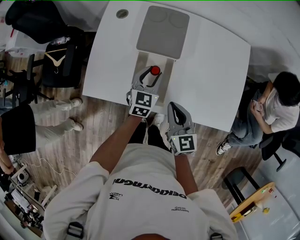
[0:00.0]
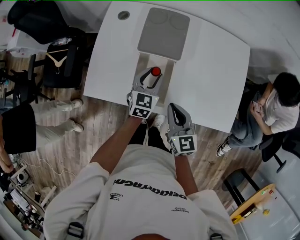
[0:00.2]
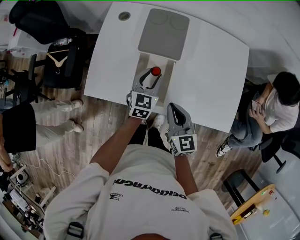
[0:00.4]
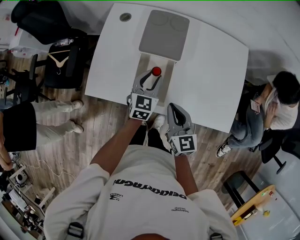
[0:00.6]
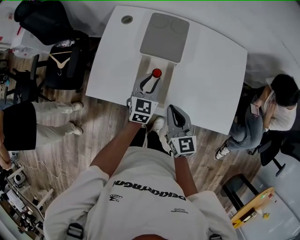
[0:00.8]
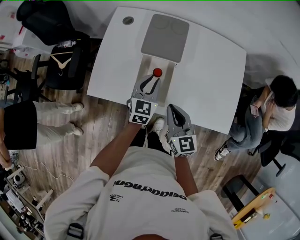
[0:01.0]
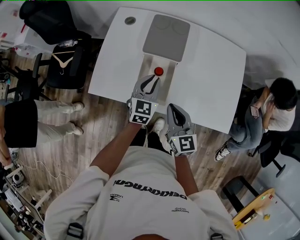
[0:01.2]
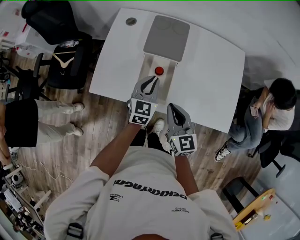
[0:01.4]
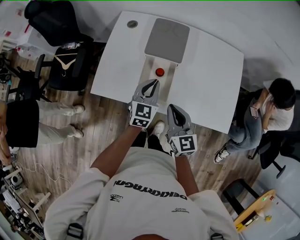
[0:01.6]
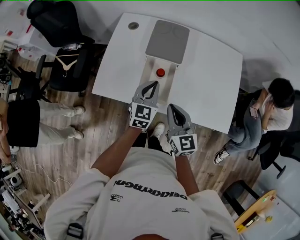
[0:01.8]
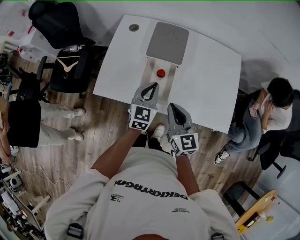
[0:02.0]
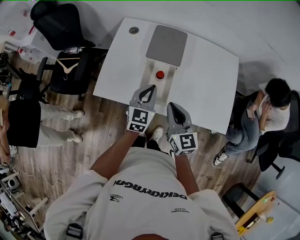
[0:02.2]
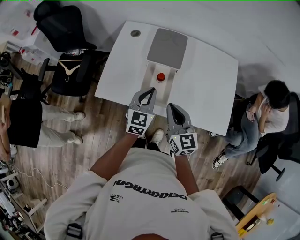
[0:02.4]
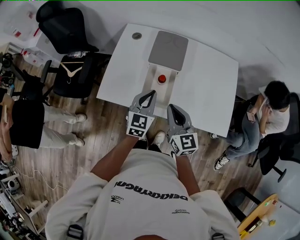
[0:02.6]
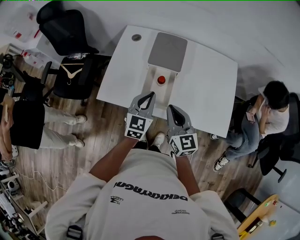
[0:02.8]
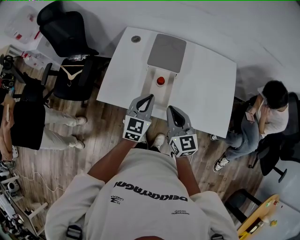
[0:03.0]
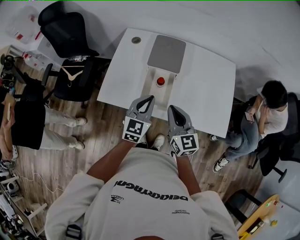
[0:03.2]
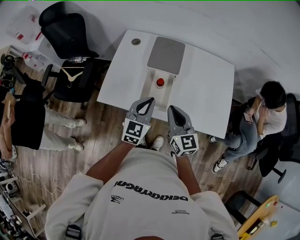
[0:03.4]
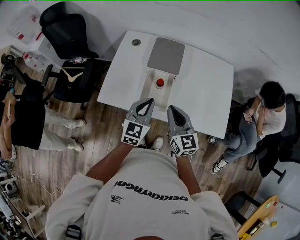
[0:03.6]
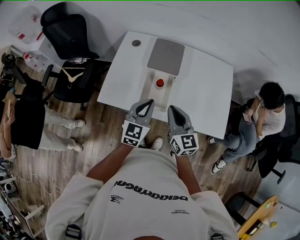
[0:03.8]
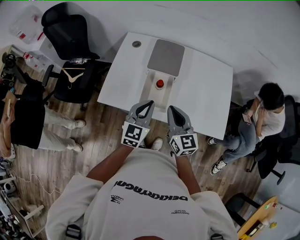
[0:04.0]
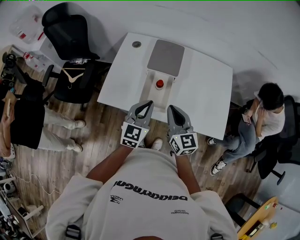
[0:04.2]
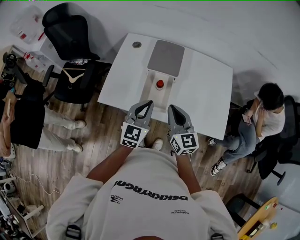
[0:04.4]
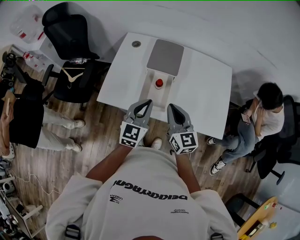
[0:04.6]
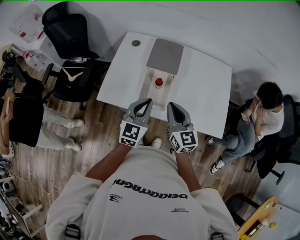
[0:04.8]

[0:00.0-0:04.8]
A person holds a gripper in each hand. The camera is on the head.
0:00.0 to 0:01.6: The left gripper shifts roughly 10 cm upward and backward, and closes, while the right gripper moves approximately 5 cm.
0:01.6 to 0:03.2: The left gripper is displaced upward and backward by about 10 cm, while the right gripper goes approximately 5 cm upward.
0:03.2 to 0:04.8: The grippers move only a little.

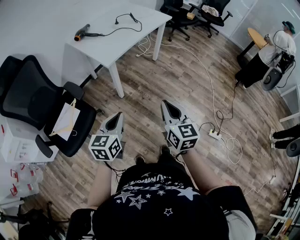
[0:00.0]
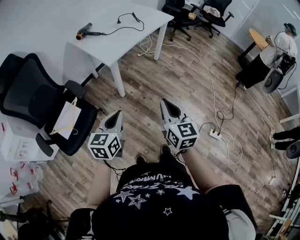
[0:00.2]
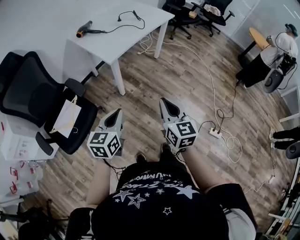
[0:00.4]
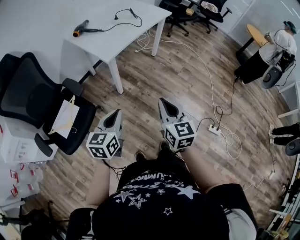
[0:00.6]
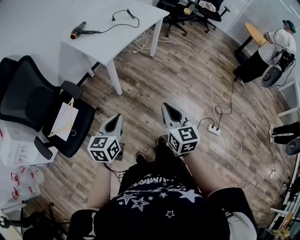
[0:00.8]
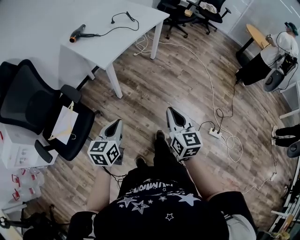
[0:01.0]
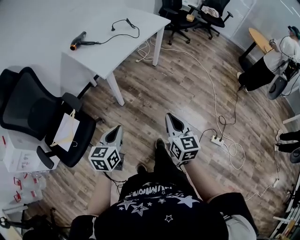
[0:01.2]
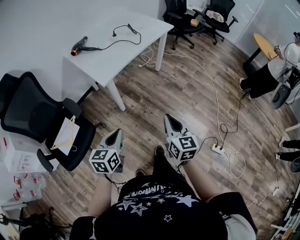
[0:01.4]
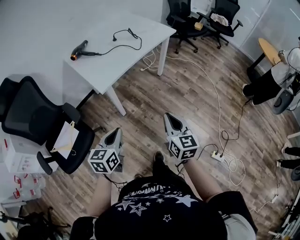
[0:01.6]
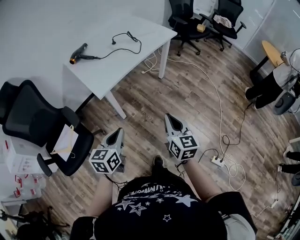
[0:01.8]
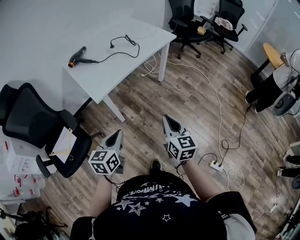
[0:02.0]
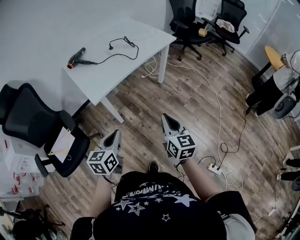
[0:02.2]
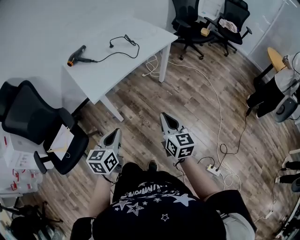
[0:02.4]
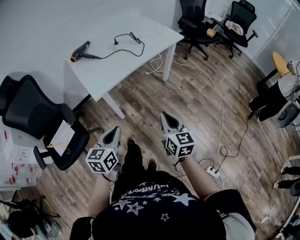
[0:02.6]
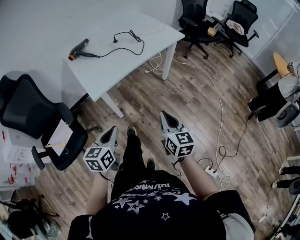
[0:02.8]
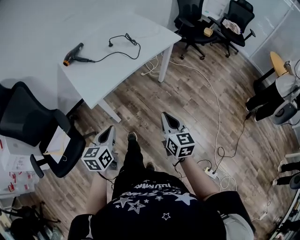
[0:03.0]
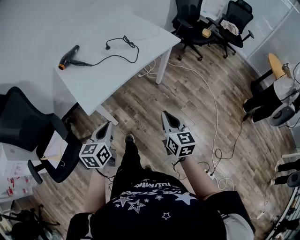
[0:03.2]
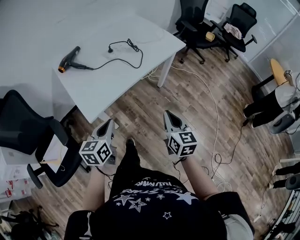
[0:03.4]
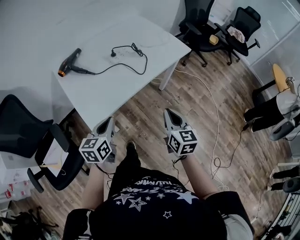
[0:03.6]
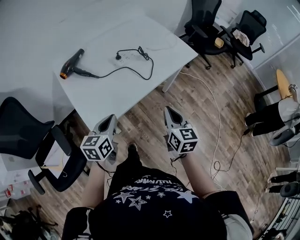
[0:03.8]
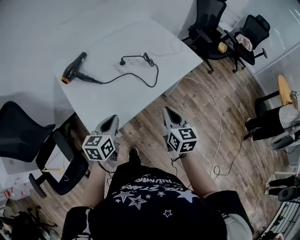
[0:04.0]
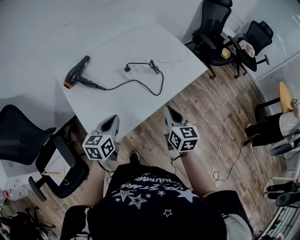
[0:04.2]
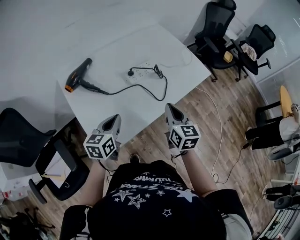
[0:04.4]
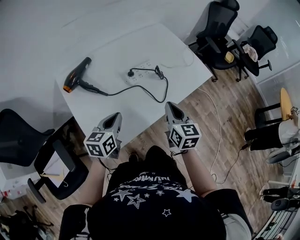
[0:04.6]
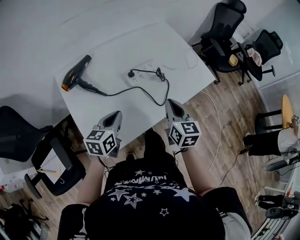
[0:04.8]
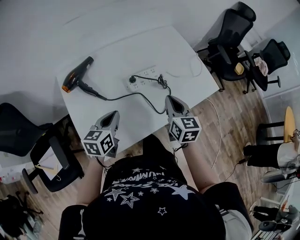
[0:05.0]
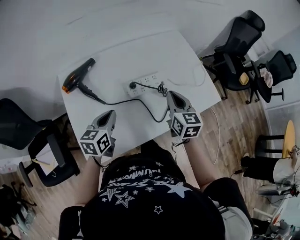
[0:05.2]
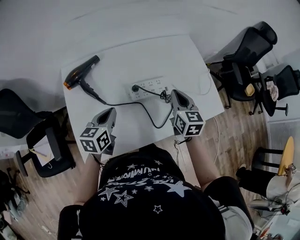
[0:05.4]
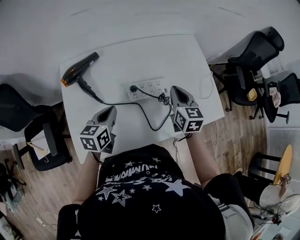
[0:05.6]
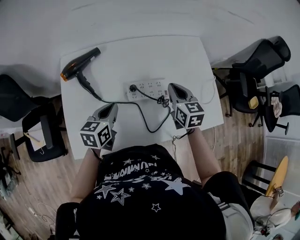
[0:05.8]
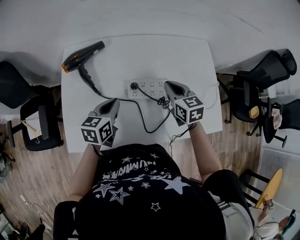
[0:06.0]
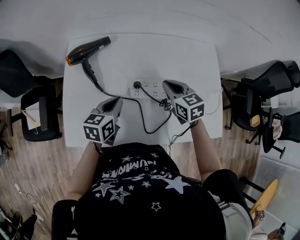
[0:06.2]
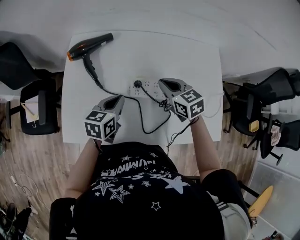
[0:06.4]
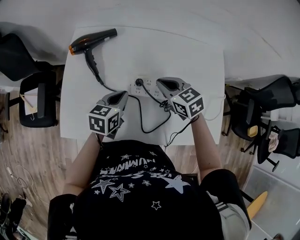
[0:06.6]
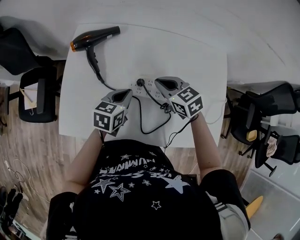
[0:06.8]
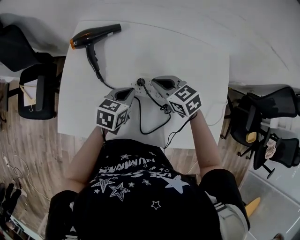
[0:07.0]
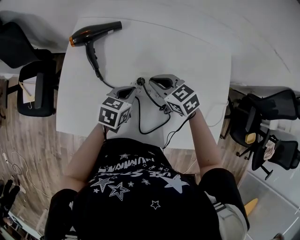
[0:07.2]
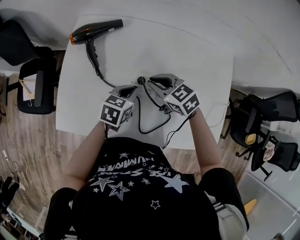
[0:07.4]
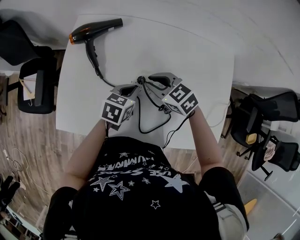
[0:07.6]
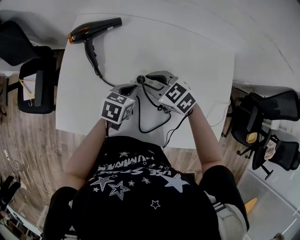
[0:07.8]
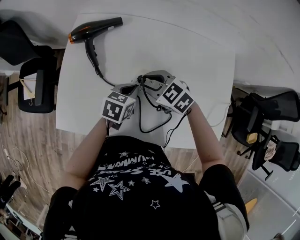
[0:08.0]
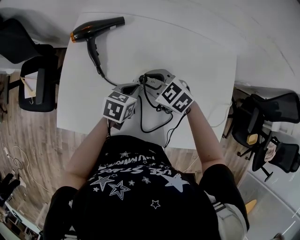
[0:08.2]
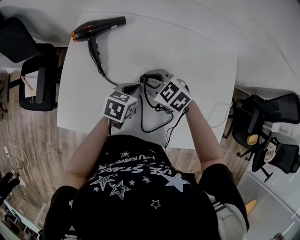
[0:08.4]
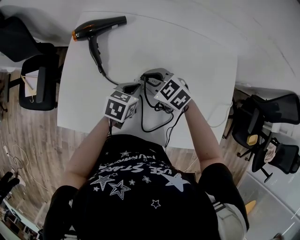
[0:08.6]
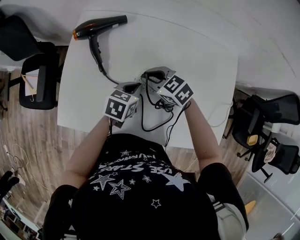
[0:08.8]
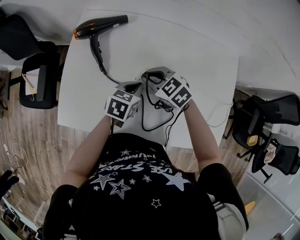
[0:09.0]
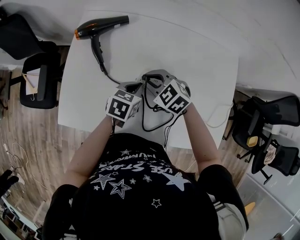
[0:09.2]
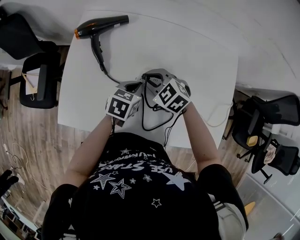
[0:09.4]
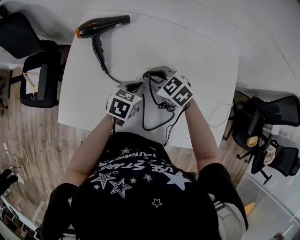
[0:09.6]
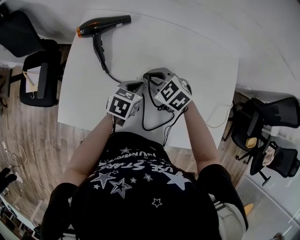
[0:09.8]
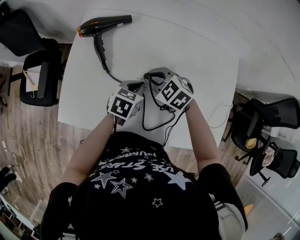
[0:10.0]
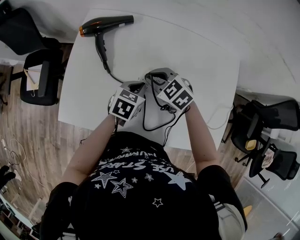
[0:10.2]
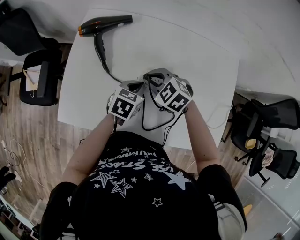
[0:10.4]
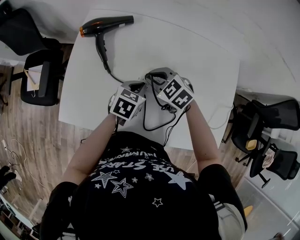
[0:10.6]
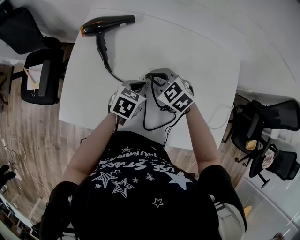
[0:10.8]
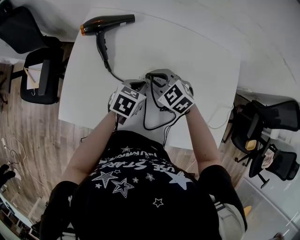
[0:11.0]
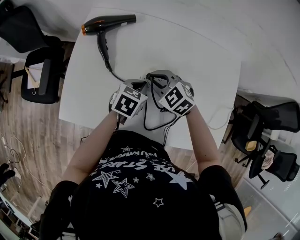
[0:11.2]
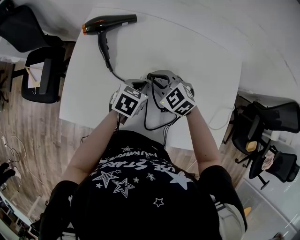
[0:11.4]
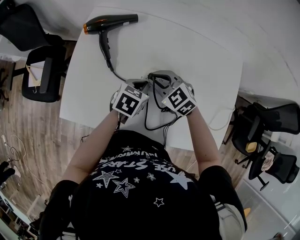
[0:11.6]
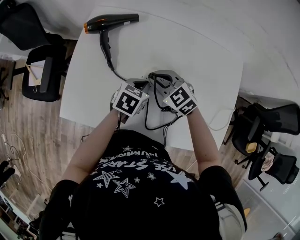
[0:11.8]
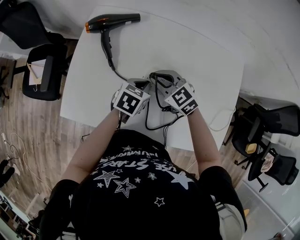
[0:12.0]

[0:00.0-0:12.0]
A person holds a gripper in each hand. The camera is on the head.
0:00.0 to 0:01.6: The right gripper travels forward and to the right by about 15 cm. Meanwhile the left gripper shifts about 15 cm forward.
0:01.6 to 0:03.0: The grippers both shift forward by approximately 15 cm.
0:03.0 to 0:04.4: Both grippers move forward, roughly 35 cm.
0:04.4 to 0:06.0: The left gripper changes place by about 20 cm, and swivels roughly 30 degrees, while the right gripper shifts by roughly 30 cm, and swivels some 50 degrees.
0:06.0 to 0:07.6: The left gripper is displaced downward and to the right by some 10 cm, while the right gripper travels to the left and downward by approximately 10 cm, and changes its angle by about 50 degrees.
0:07.6 to 0:09.0: There are only small adjustments of the grippers.
0:09.0 to 0:12.0: There are only small adjustments of the grippers.

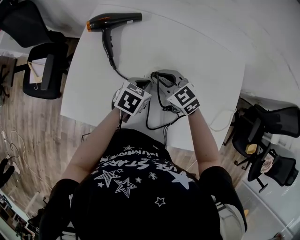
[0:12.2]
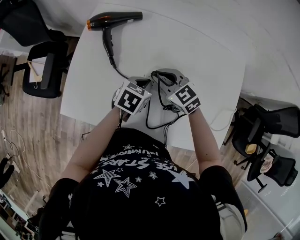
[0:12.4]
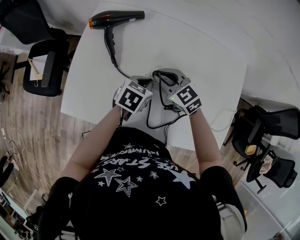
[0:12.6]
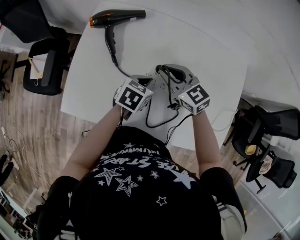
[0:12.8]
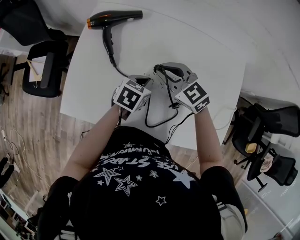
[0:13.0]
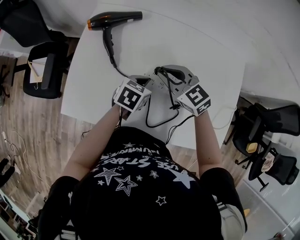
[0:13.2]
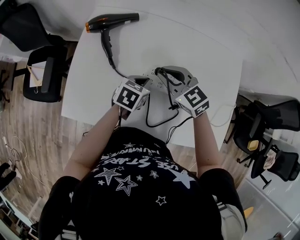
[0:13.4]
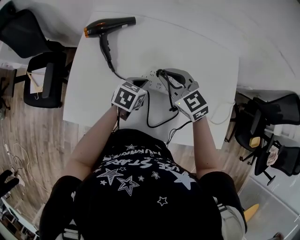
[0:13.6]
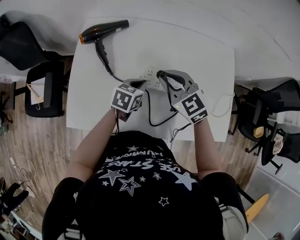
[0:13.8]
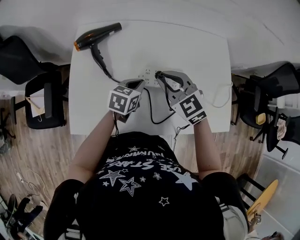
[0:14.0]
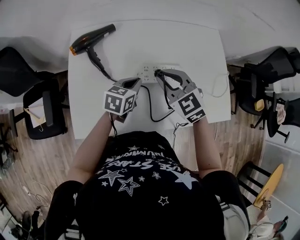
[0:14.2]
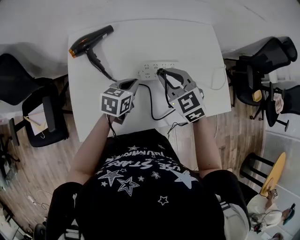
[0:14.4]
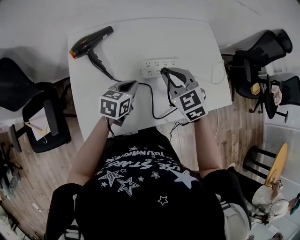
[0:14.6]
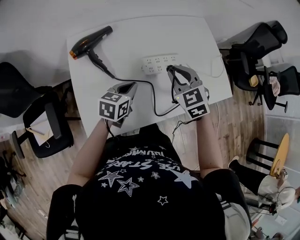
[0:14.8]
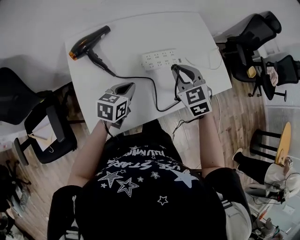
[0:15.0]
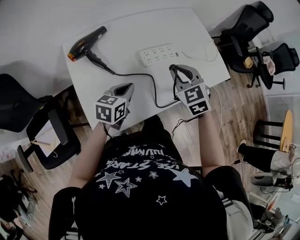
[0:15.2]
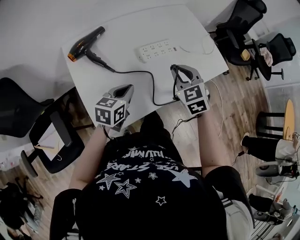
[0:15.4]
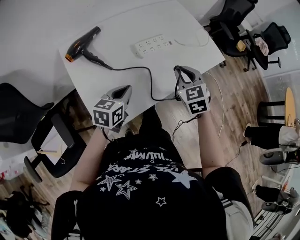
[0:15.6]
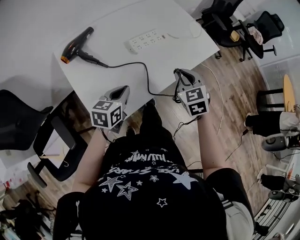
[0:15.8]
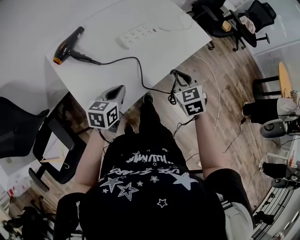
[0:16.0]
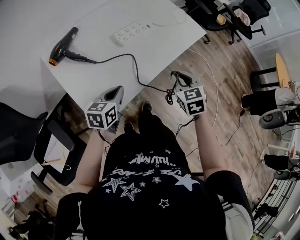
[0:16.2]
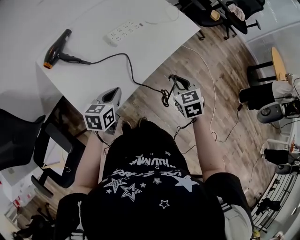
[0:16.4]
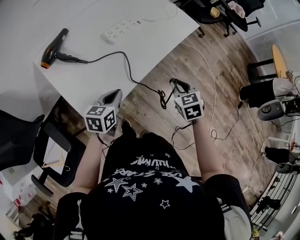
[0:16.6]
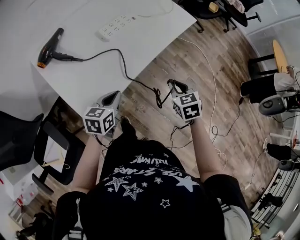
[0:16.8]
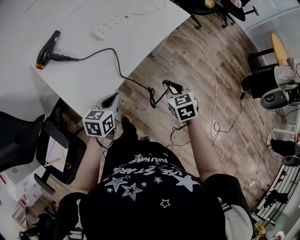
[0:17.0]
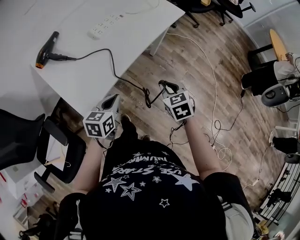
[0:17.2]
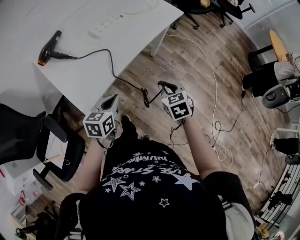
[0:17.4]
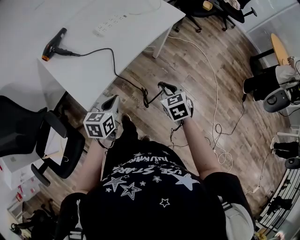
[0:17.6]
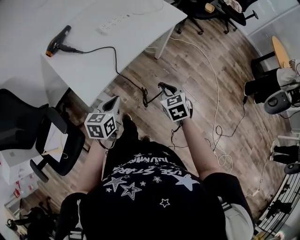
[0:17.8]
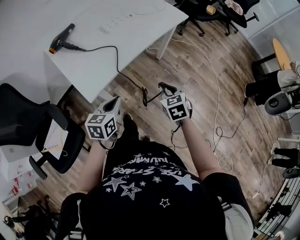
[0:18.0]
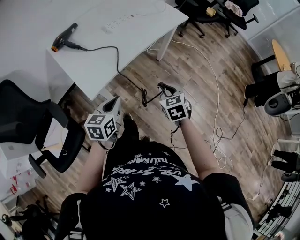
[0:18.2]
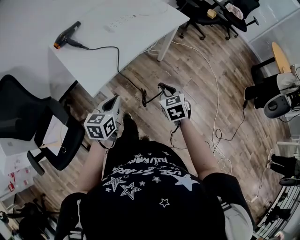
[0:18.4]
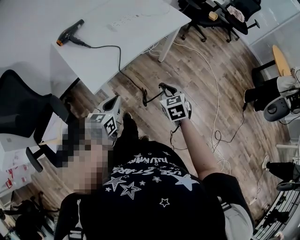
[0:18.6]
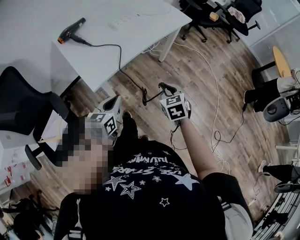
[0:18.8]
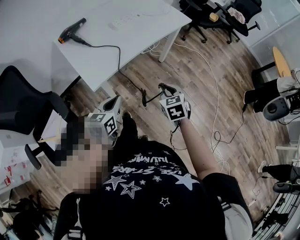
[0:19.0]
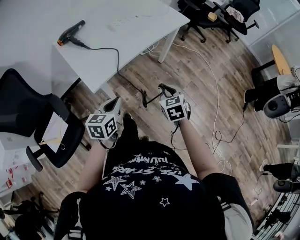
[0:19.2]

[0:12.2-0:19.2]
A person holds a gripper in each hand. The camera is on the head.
0:12.2 to 0:13.6: The right gripper heads upward, covering approximately 5 cm.
0:13.6 to 0:15.0: The right gripper changes place by some 10 cm, and turns by approximately 50 degrees. Meanwhile the left gripper moves some 15 cm, and turns by roughly 20 degrees.
0:15.0 to 0:16.4: The right gripper goes approximately 25 cm backward and to the right, and swivels roughly 40 degrees, while the left gripper is displaced backward by about 15 cm.
0:16.4 to 0:17.8: Both grippers travel together backward and to the right, some 15 cm.
0:17.8 to 0:19.2: The two grippers go approximately 5 cm backward.
